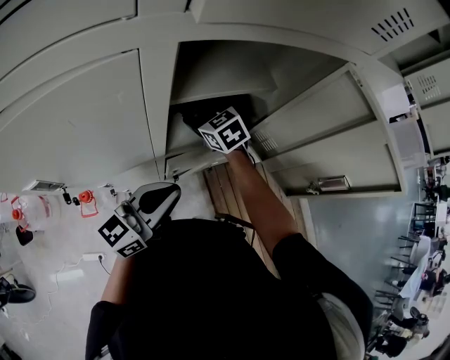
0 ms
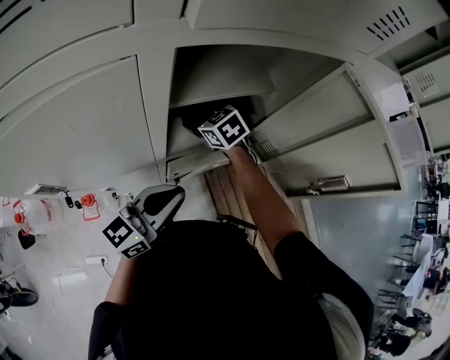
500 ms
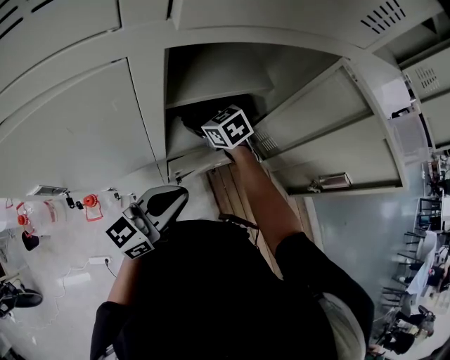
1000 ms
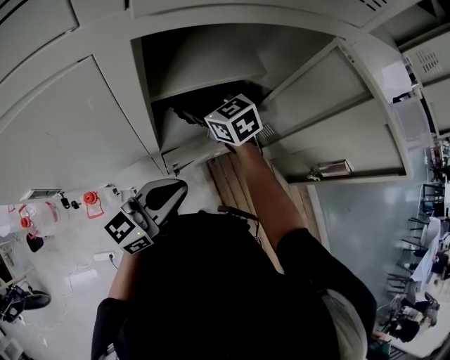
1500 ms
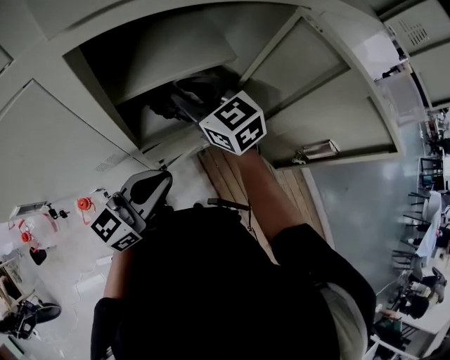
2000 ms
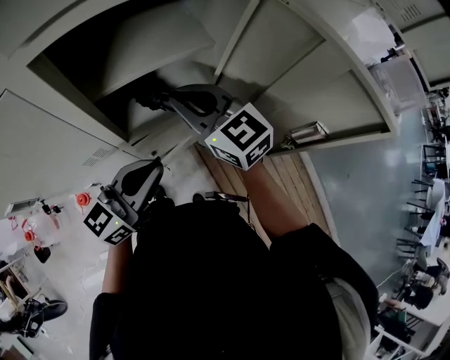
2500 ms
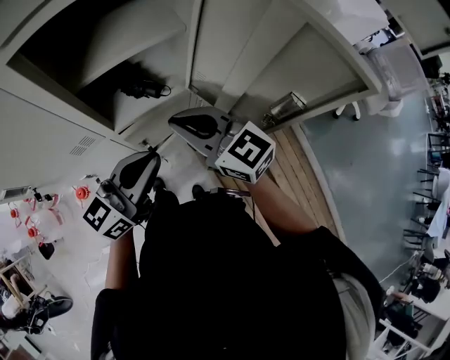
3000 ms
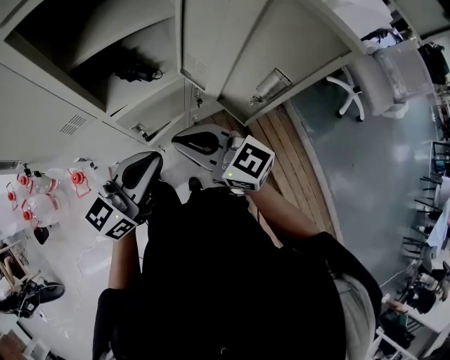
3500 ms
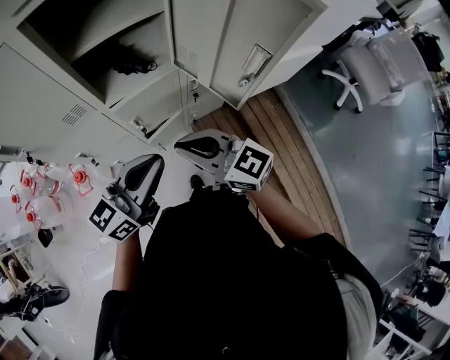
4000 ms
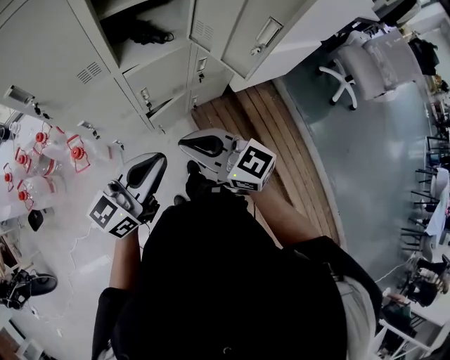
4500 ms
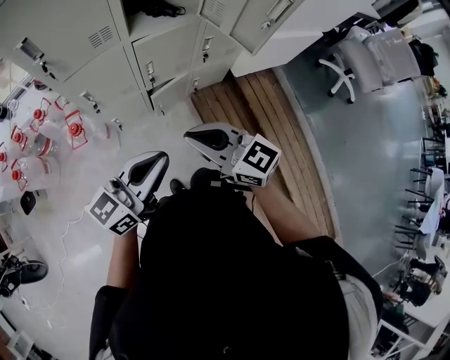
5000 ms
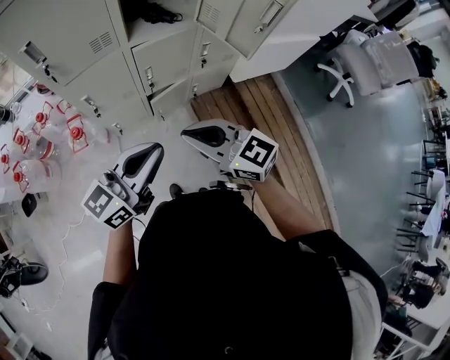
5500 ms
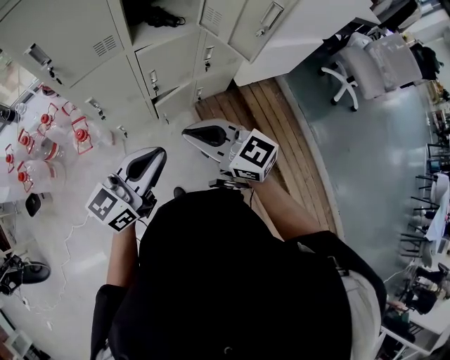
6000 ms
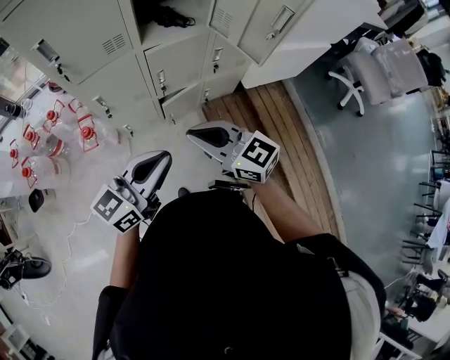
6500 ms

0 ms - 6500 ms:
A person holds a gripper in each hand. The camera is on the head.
0 ms - 2000 ms: The right gripper moves upward, approximately 15 cm, turns by about 20 degrees, and closes.
2000 ms - 4500 ms: The right gripper moves backward, approximately 40 cm, and rotates roughly 20 degrees. The left gripper travels backward by some 25 cm.
4500 ms - 6500 ms: Both grippers move backward, about 5 cm.

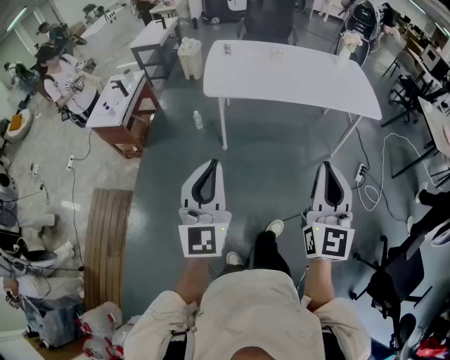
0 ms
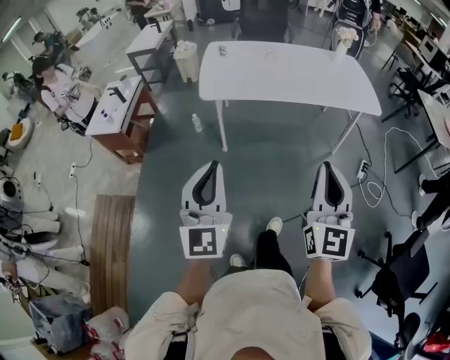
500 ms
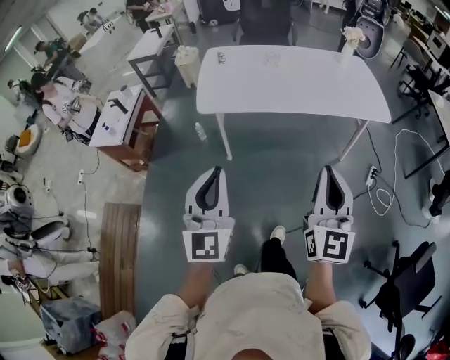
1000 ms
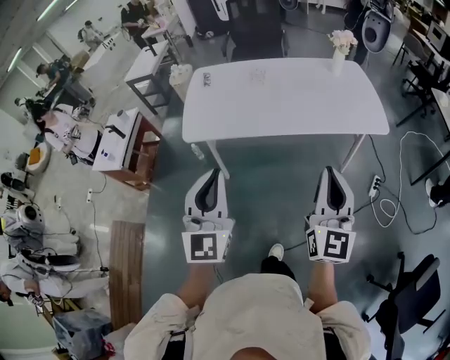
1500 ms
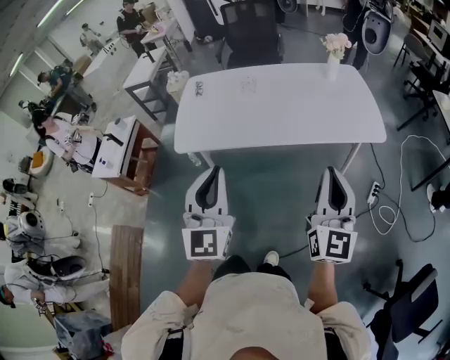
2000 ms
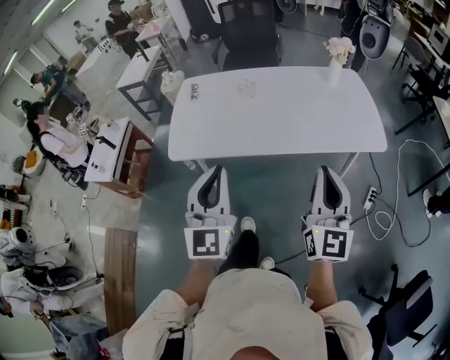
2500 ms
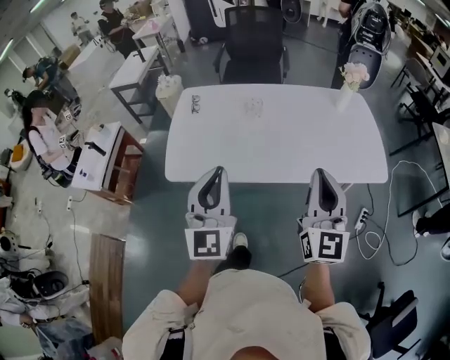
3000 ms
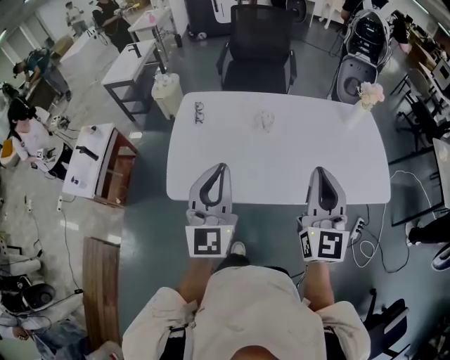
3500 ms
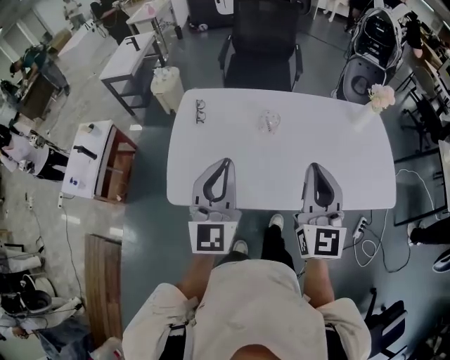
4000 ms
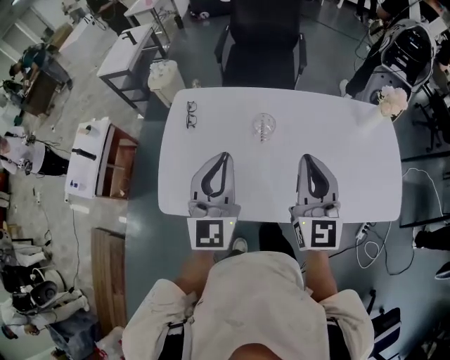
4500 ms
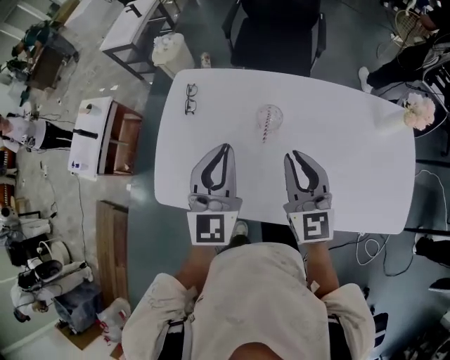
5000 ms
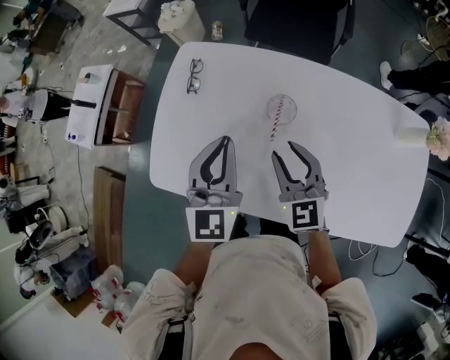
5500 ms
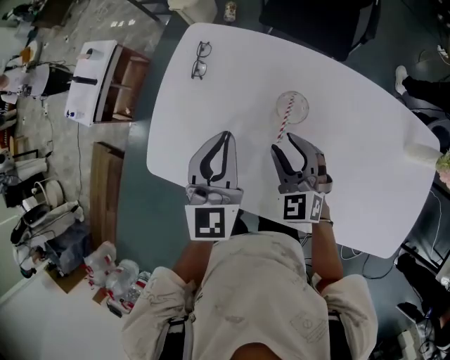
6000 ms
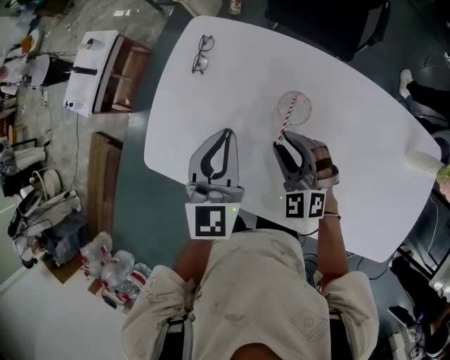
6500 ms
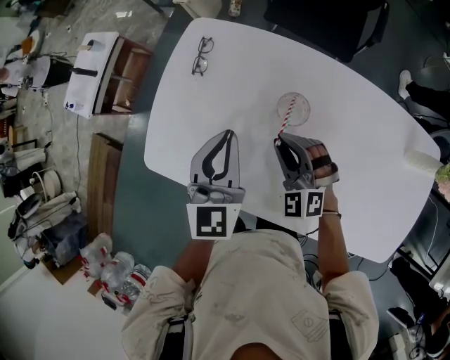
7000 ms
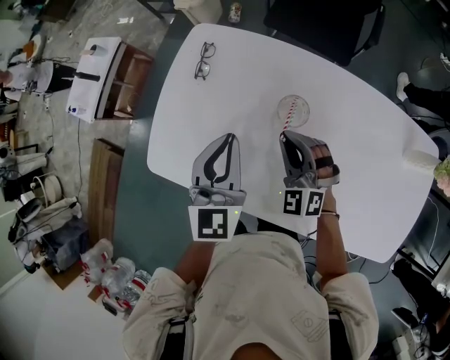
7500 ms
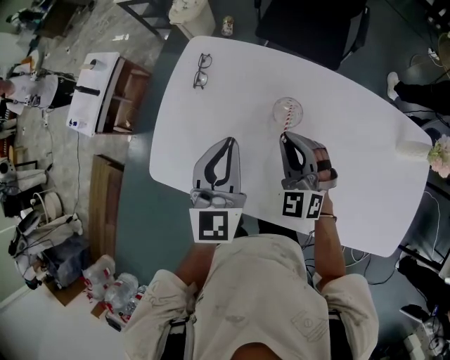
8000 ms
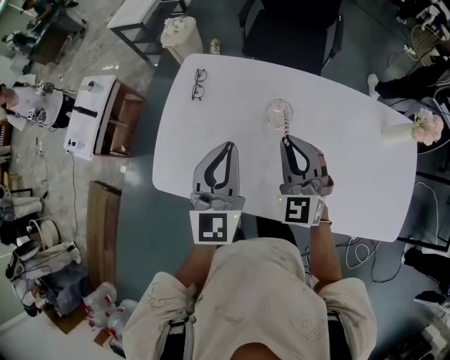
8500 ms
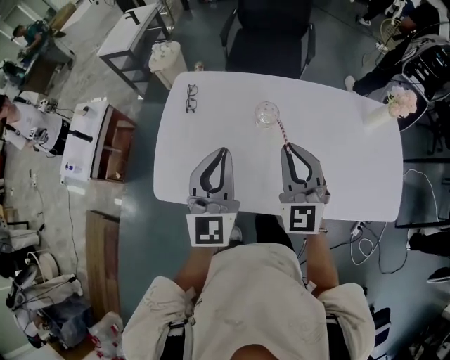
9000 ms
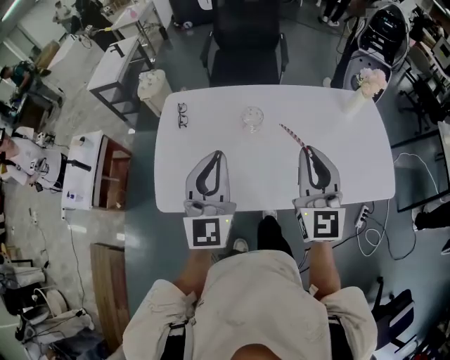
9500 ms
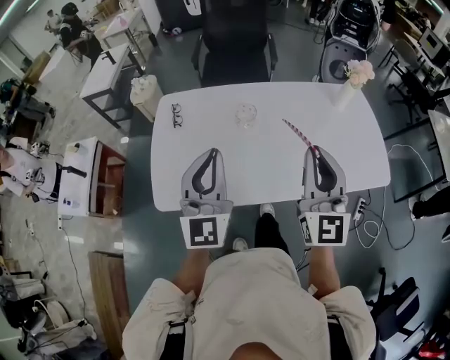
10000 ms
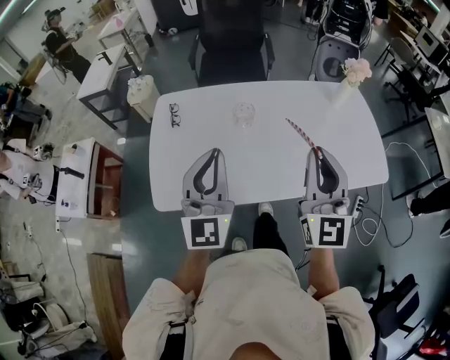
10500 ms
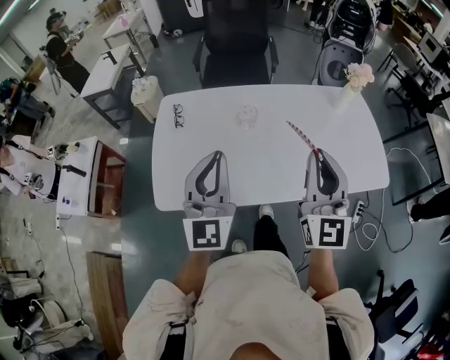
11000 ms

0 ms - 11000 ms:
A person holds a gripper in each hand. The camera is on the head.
0 ms - 2000 ms: The grippers both shift forward and to the right by about 40 cm.
2000 ms - 3500 ms: The two grippers go roughly 35 cm forward and to the left.
3500 ms - 5500 ms: Both grippers travel together forward and downward, some 30 cm. The right gripper rotates approximately 40 degrees, and opens its fingers. Meanwhile the left gripper turns by about 20 degrees.
5500 ms - 7500 ms: The right gripper shifts some 5 cm downward, changes its angle by some 40 degrees, and closes its fingers.
7500 ms - 9000 ms: The left gripper is displaced backward and upward by approximately 15 cm, and swivels about 20 degrees. The right gripper is displaced upward and backward by about 20 cm, and changes its angle by some 40 degrees.
9000 ms - 11000 ms: The right gripper heads backward, upward and to the right, covering roughly 20 cm, and changes its angle by roughly 30 degrees, while the left gripper travels backward and upward by roughly 10 cm.

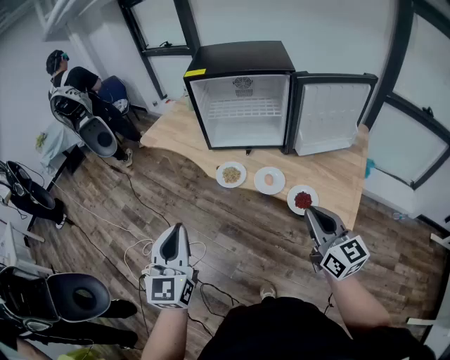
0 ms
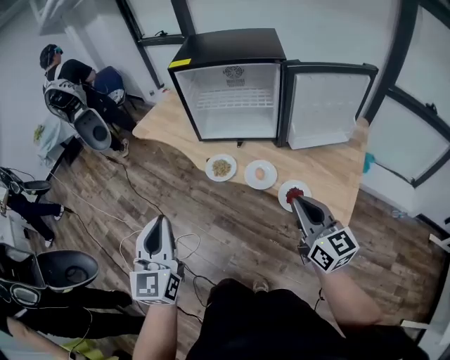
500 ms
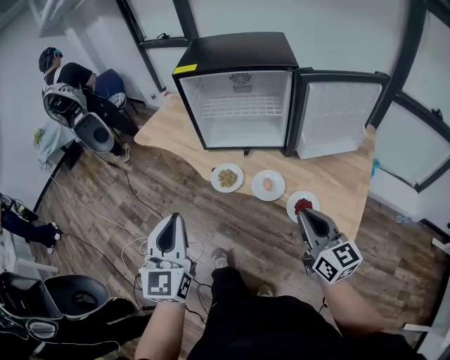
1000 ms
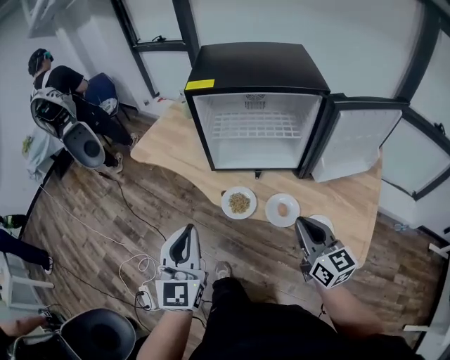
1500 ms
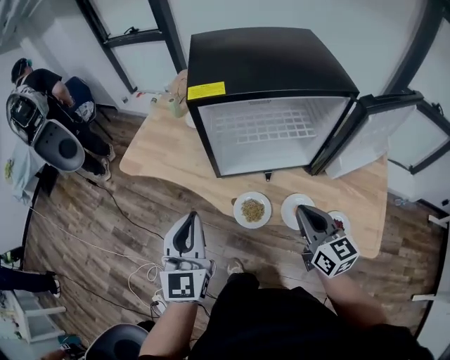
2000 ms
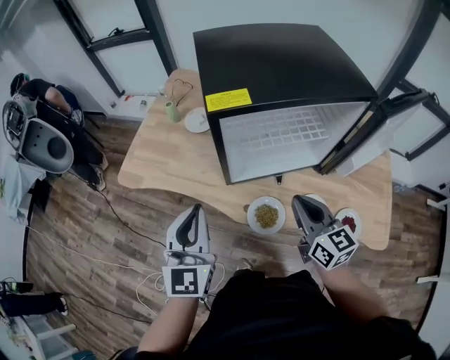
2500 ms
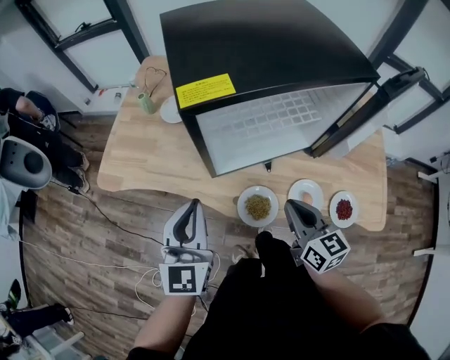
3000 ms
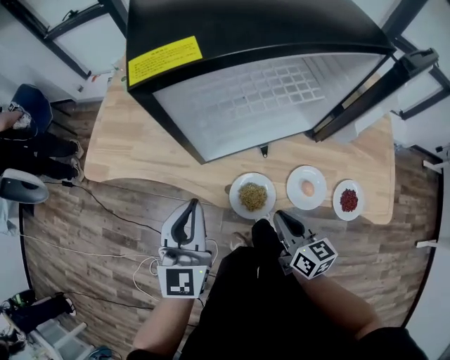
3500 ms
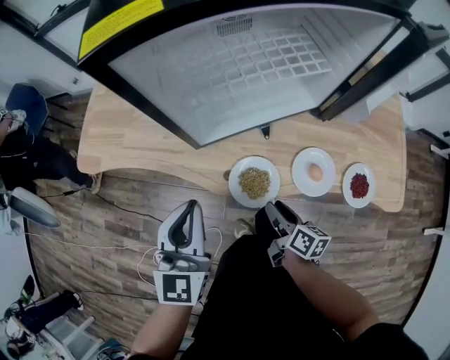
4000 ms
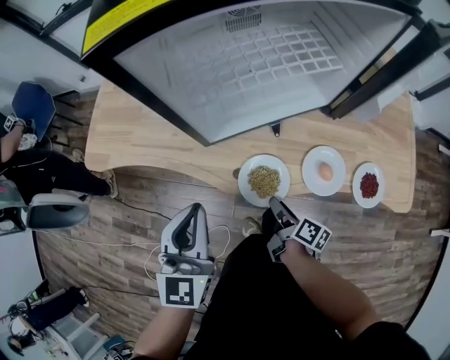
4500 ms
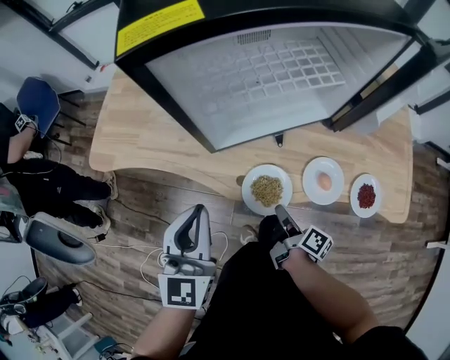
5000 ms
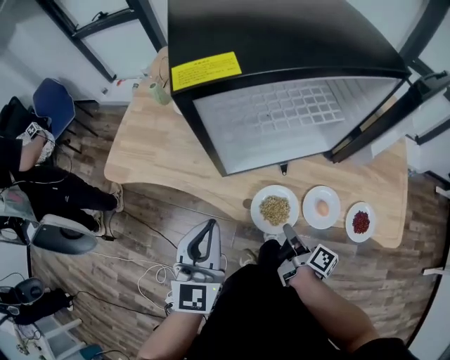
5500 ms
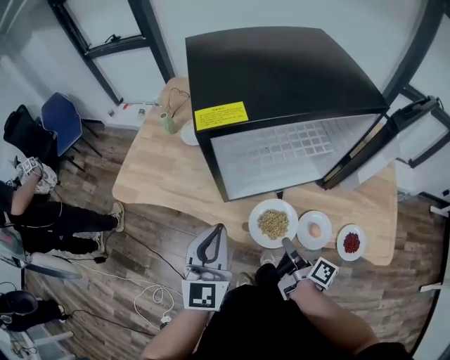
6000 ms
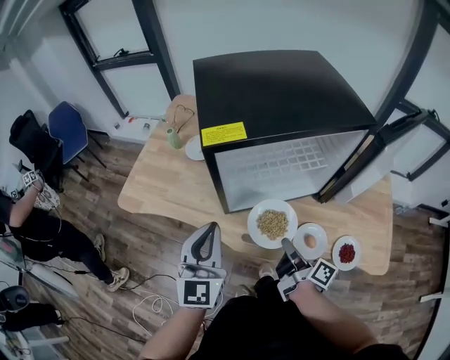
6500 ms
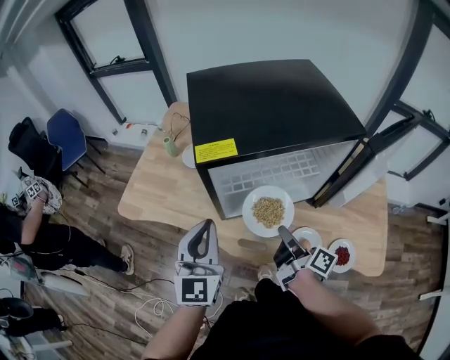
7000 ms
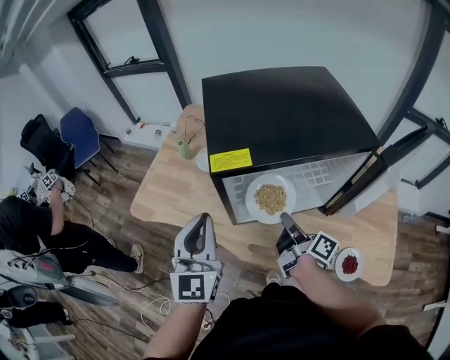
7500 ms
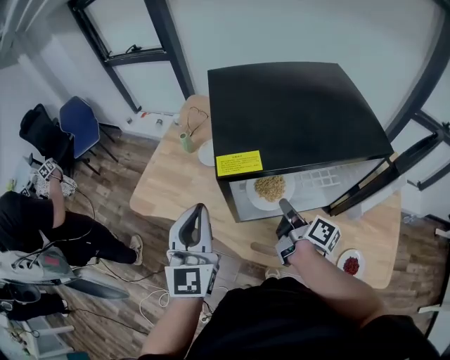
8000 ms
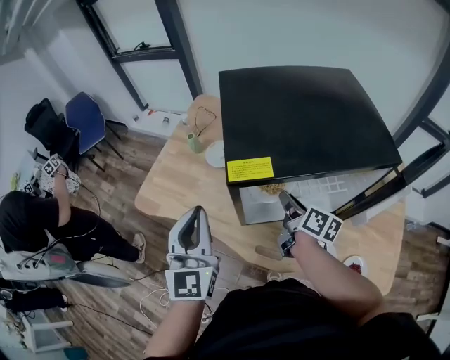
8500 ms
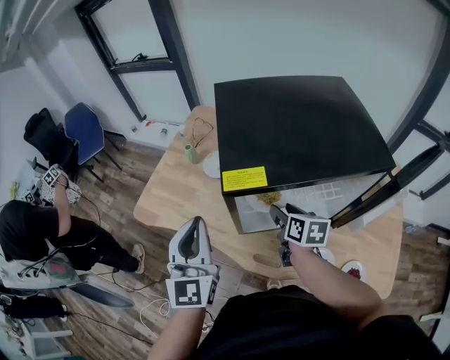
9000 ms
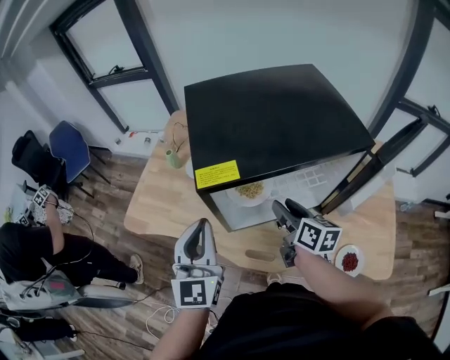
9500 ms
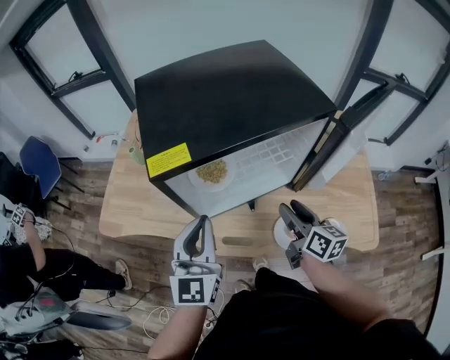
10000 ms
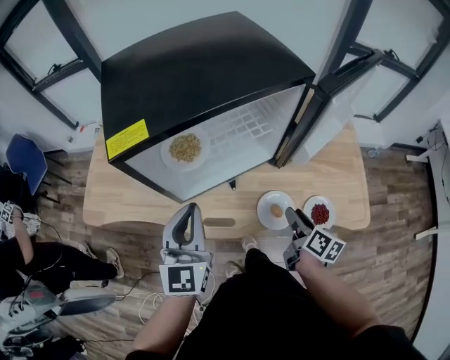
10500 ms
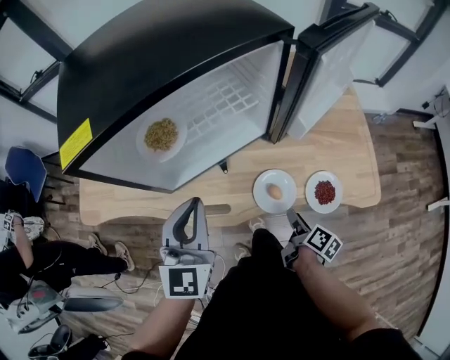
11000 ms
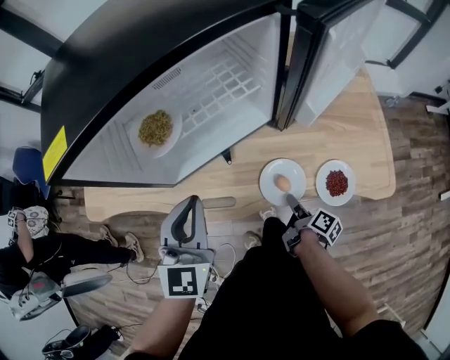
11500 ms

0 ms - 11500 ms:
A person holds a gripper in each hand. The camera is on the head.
0 ms - 2000 ms: Both grippers travel together forward, about 30 cm.
2000 ms - 4000 ms: The left gripper goes some 15 cm downward and forward. Meanwhile the right gripper moves downward, about 30 cm, rolls clockwise, seen from behind, by some 50 degrees, and opens.
4000 ms - 6000 ms: The left gripper is displaced upward by roughly 5 cm; the right gripper travels upward by approximately 10 cm, turns by approximately 30 degrees, and closes up.
6000 ms - 7500 ms: The right gripper goes roughly 20 cm forward and upward. The left gripper shifts roughly 10 cm upward and forward.
7500 ms - 9500 ms: The right gripper turns by roughly 40 degrees, and opens up.
9500 ms - 11500 ms: The right gripper heads downward, to the right and backward, covering some 40 cm, and rolls clockwise, seen from behind, by approximately 50 degrees, while the left gripper travels to the right and downward by about 20 cm, and changes its angle by about 30 degrees.
